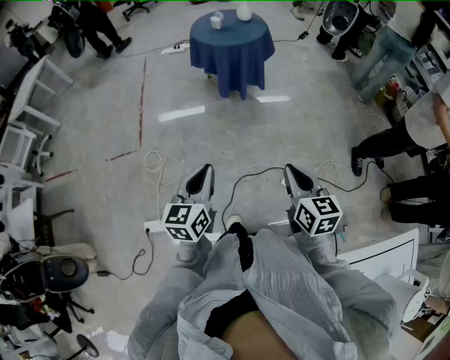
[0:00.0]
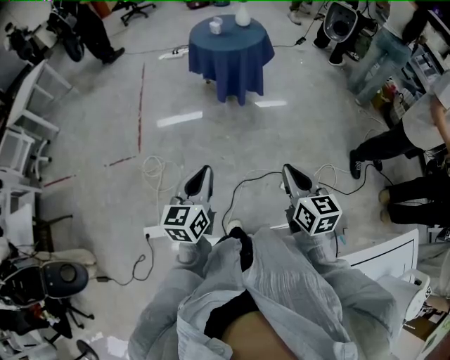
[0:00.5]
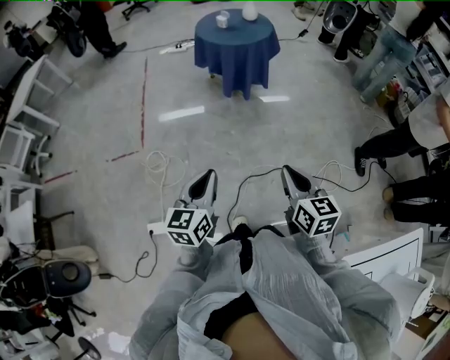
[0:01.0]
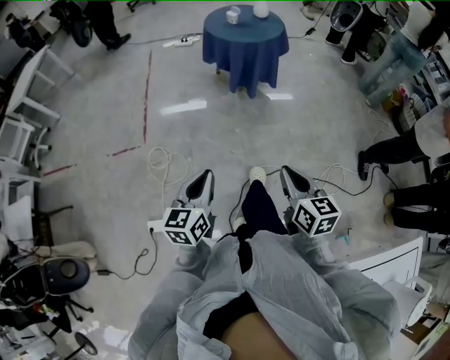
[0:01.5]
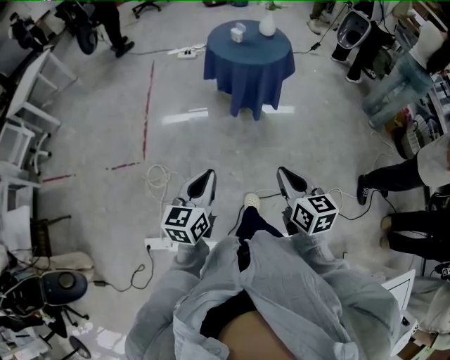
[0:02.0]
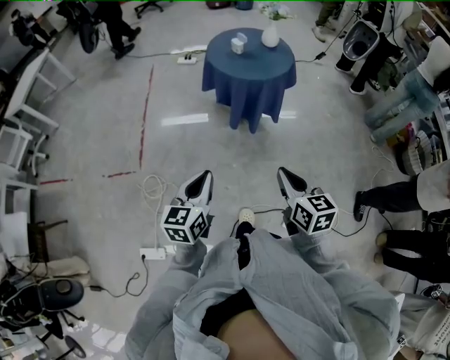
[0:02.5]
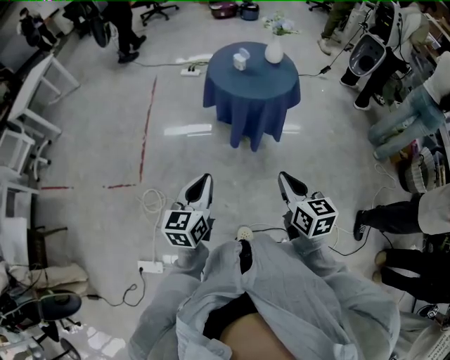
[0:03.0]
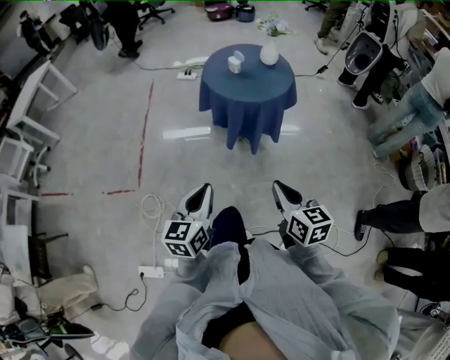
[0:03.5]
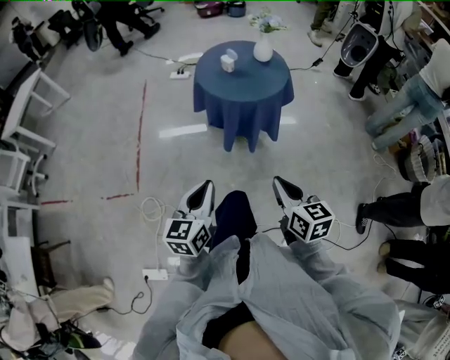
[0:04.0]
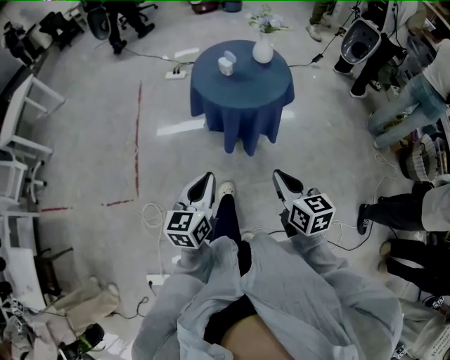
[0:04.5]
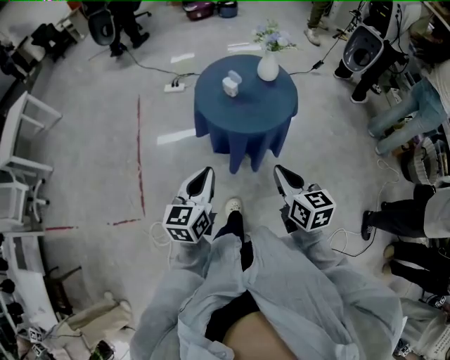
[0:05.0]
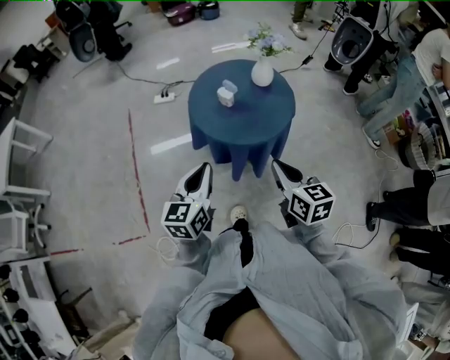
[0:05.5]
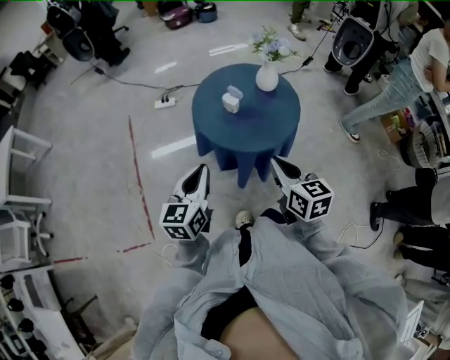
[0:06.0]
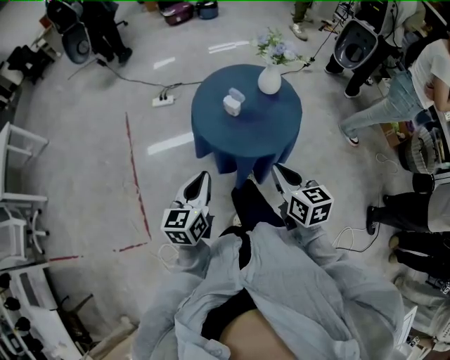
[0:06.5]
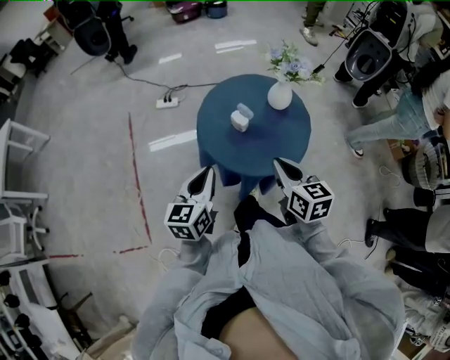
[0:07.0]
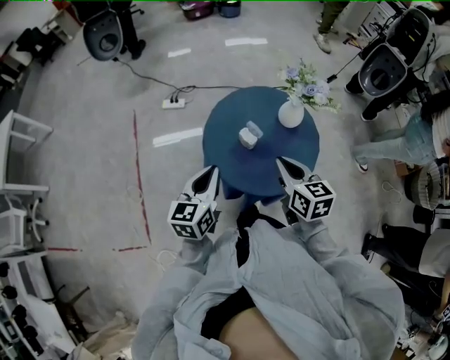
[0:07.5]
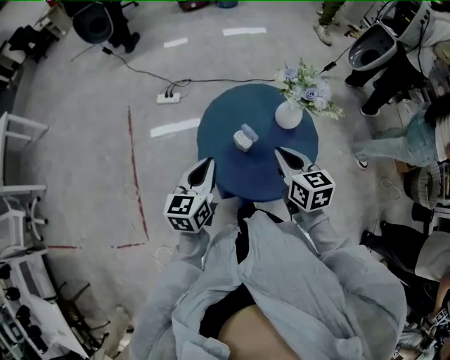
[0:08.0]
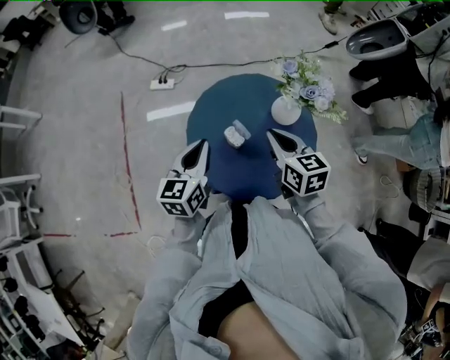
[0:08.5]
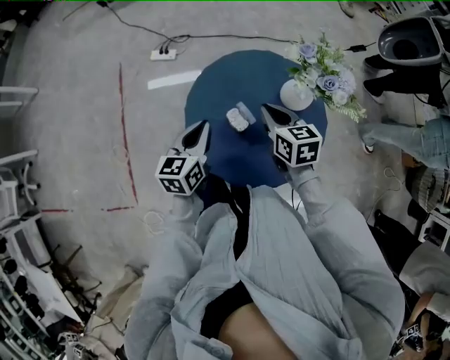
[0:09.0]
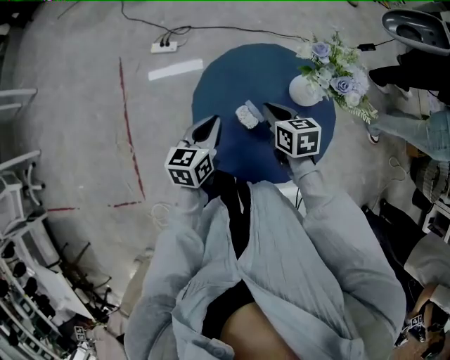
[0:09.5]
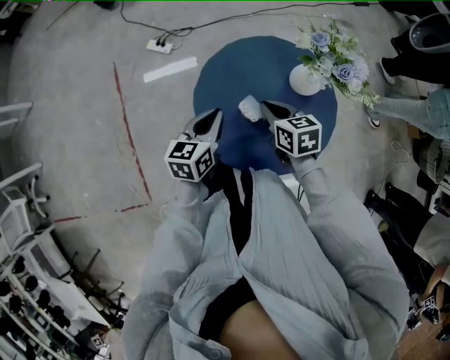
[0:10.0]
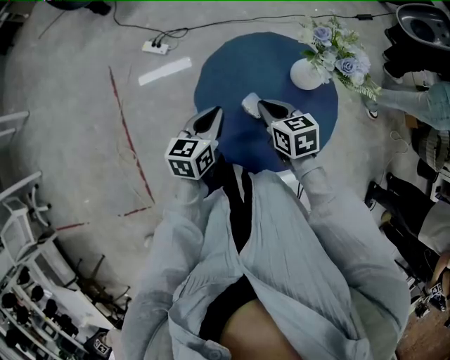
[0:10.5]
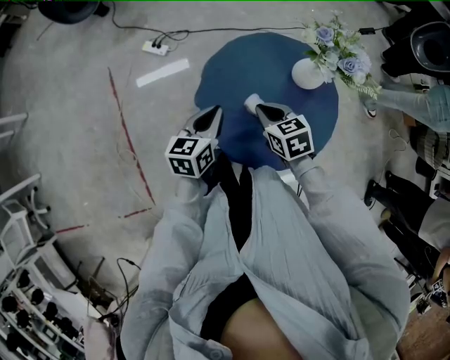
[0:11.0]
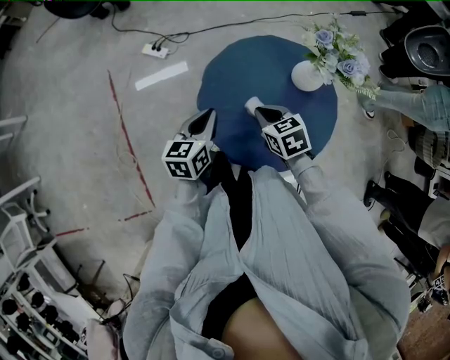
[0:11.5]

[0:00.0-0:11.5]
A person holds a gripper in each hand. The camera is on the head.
0:00.0 to 0:02.0: The left gripper moves forward, about 15 cm. Meanwhile the right gripper moves forward and to the left, approximately 20 cm.
0:02.0 to 0:04.0: Both grippers travel together forward, approximately 20 cm.
0:04.0 to 0:06.0: Both grippers move forward, roughly 30 cm.
0:06.0 to 0:07.5: Both grippers travel together forward, about 20 cm.
0:07.5 to 0:09.5: Both grippers move forward and downward, approximately 20 cm.
0:09.5 to 0:11.5: The right gripper travels to the left by about 5 cm.

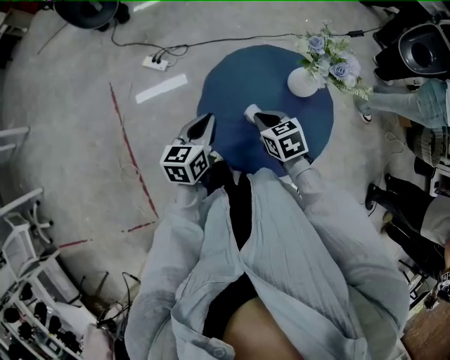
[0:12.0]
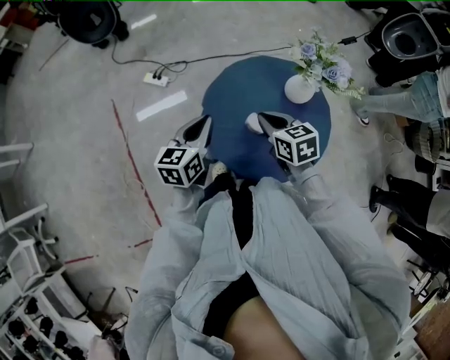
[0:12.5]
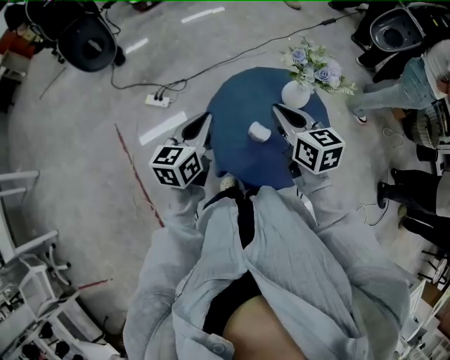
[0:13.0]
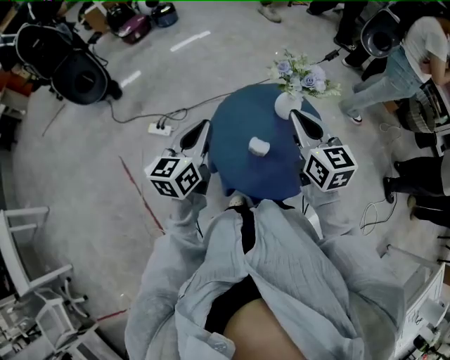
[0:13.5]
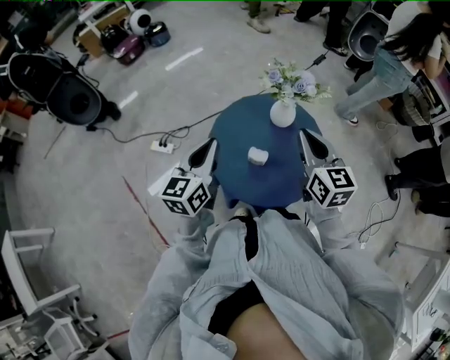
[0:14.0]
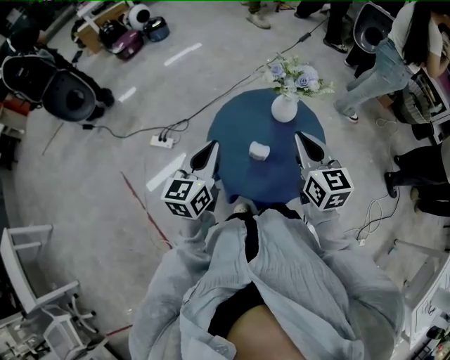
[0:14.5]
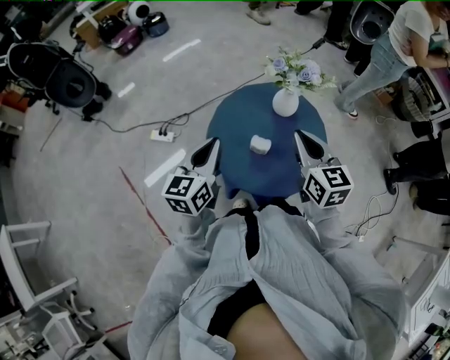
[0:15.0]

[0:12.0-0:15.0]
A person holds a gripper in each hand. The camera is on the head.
0:12.0 to 0:13.5: The right gripper shifts approximately 25 cm upward, and points its fingers roughly 40 degrees further upward. The left gripper is displaced upward by about 15 cm, and changes its angle by some 20 degrees.
0:13.5 to 0:15.0: The left gripper moves some 5 cm, while the right gripper moves backward, some 5 cm.

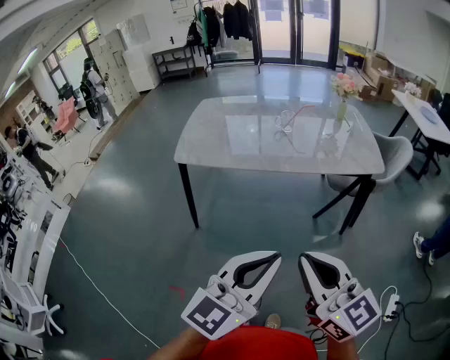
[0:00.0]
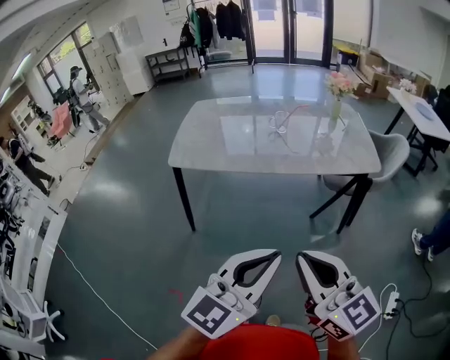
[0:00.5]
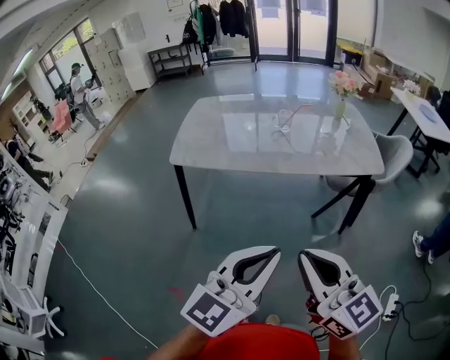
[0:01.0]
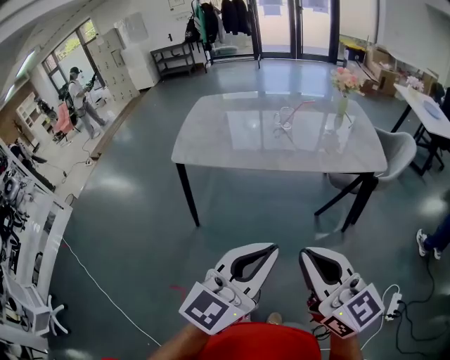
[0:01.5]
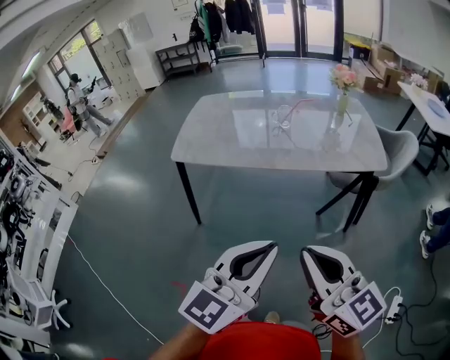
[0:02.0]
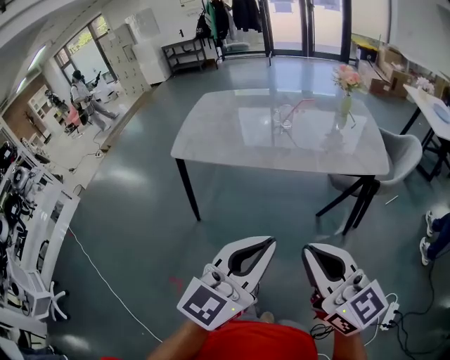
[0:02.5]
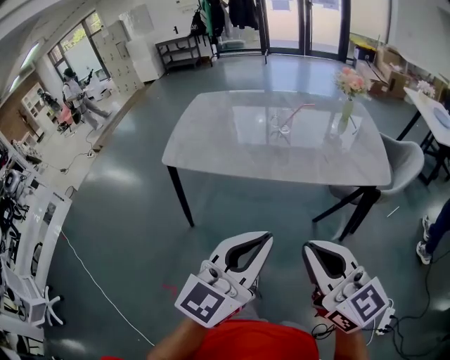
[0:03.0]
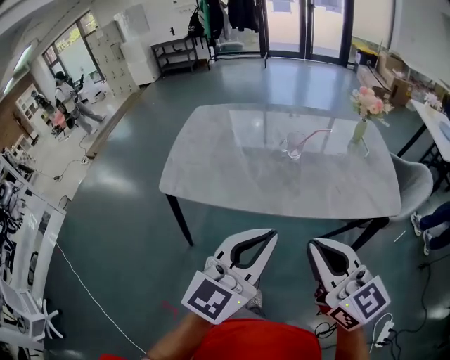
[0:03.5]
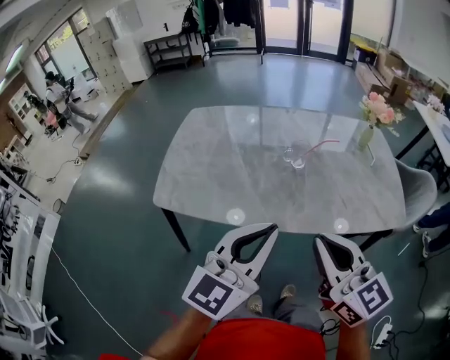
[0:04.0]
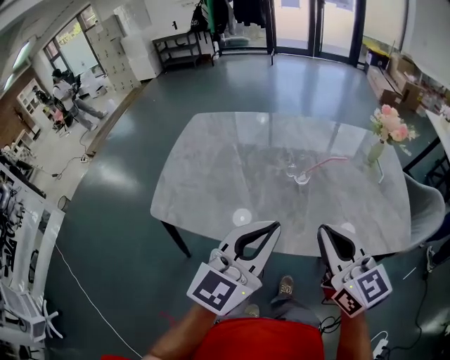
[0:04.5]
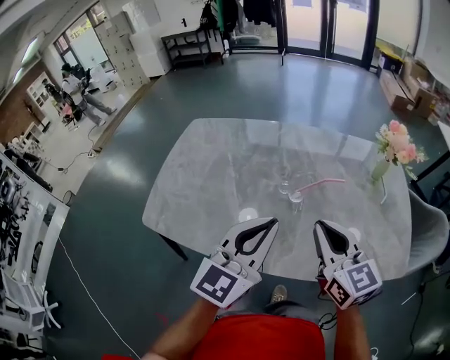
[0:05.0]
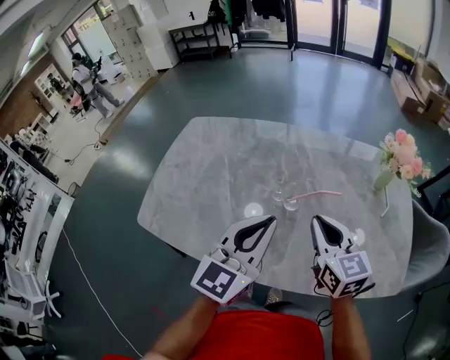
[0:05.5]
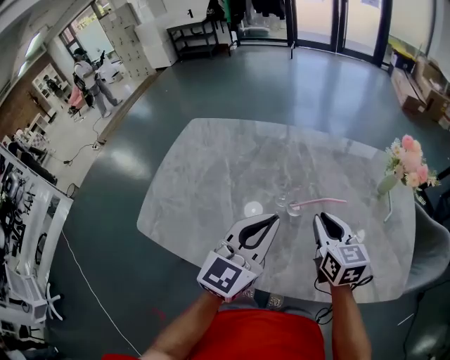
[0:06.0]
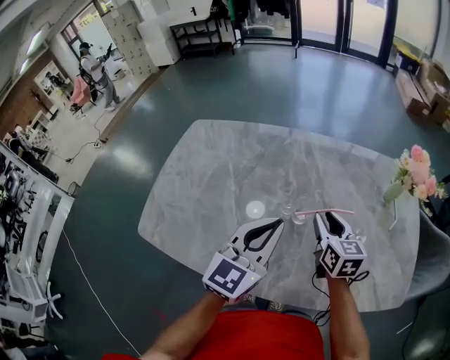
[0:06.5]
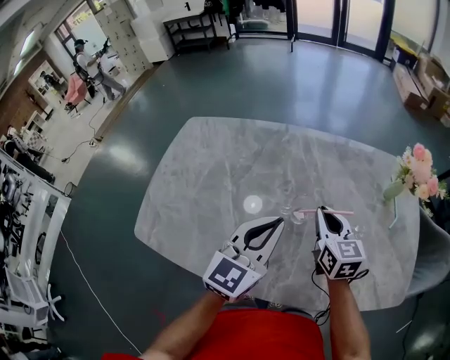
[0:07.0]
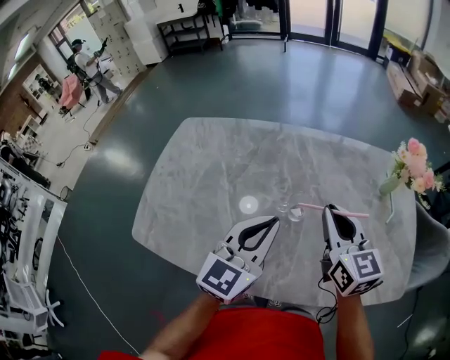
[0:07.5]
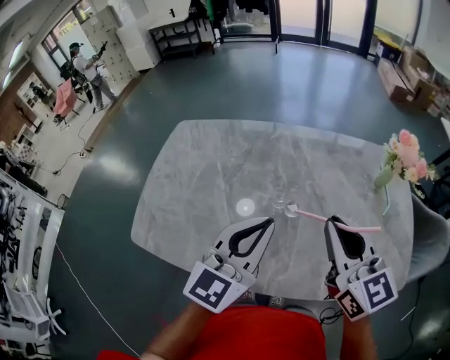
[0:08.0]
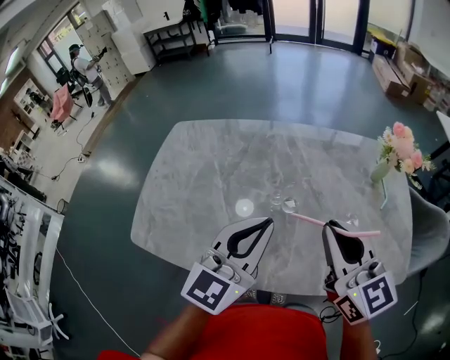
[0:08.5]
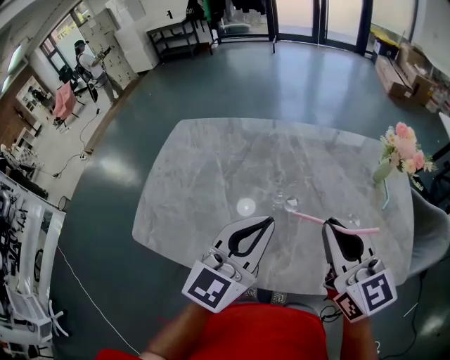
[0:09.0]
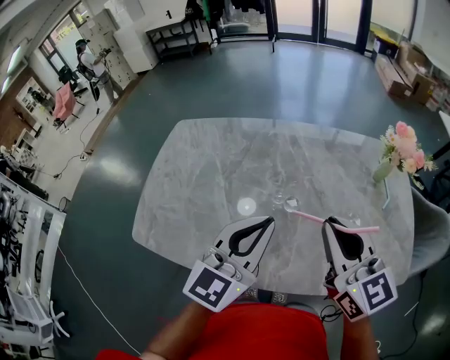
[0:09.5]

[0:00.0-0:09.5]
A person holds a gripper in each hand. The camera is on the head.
0:00.0 to 0:02.0: The right gripper shifts by approximately 5 cm, while the left gripper moves approximately 5 cm.
0:02.0 to 0:04.0: Both grippers travel together forward, about 35 cm.
0:04.0 to 0:05.5: Both grippers travel together forward, about 25 cm.
0:05.5 to 0:07.5: Both grippers move forward, about 5 cm. The right gripper reaches roughly 10 cm downward, then returns, and opens, then closes once more.
0:07.5 to 0:09.5: The left gripper shifts by some 5 cm. Meanwhile the right gripper shifts some 10 cm backward and upward.

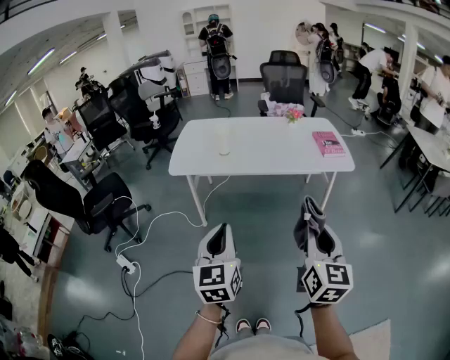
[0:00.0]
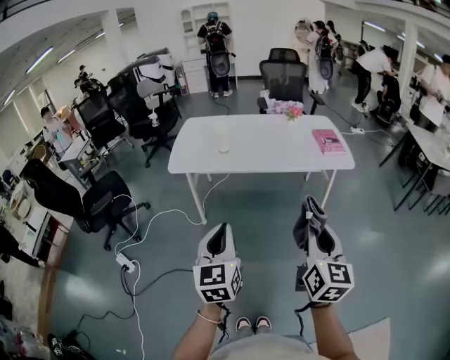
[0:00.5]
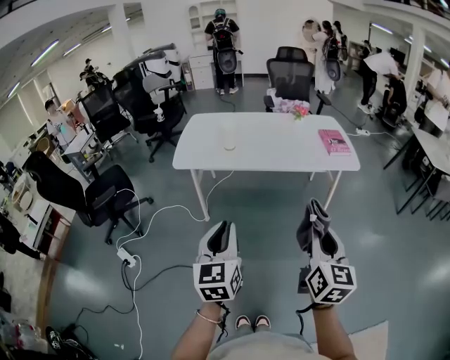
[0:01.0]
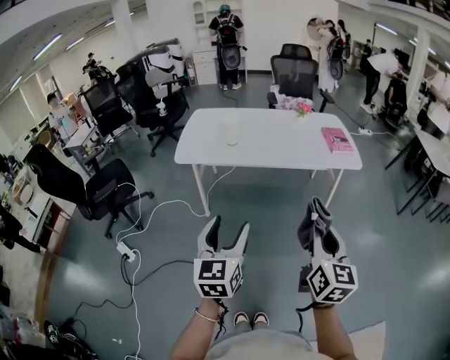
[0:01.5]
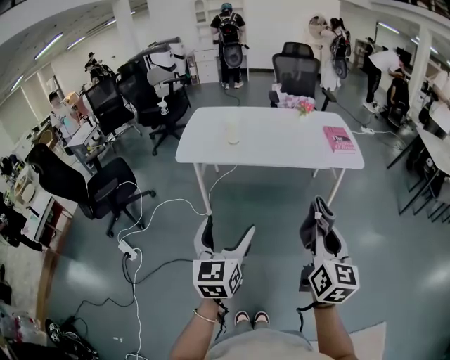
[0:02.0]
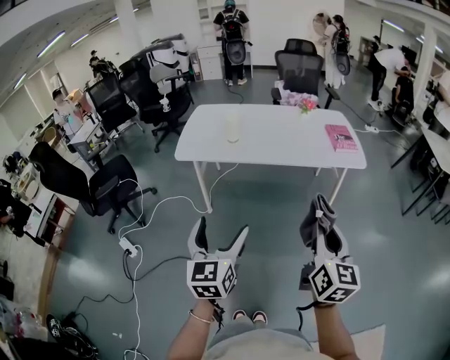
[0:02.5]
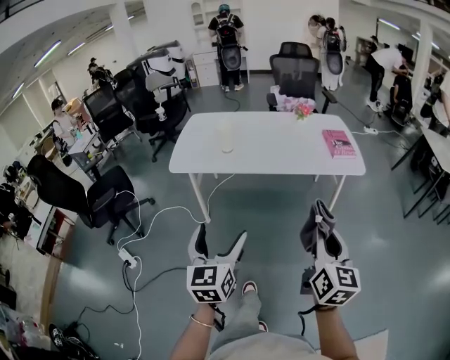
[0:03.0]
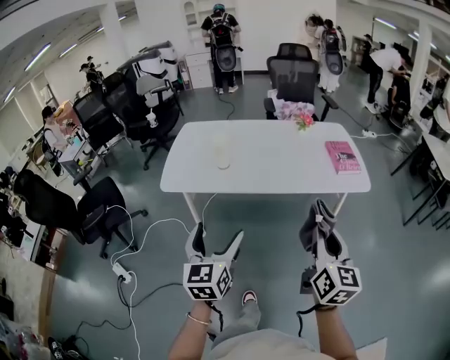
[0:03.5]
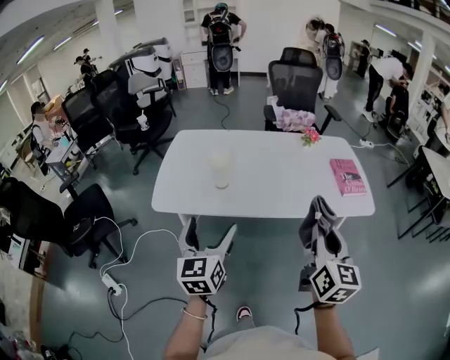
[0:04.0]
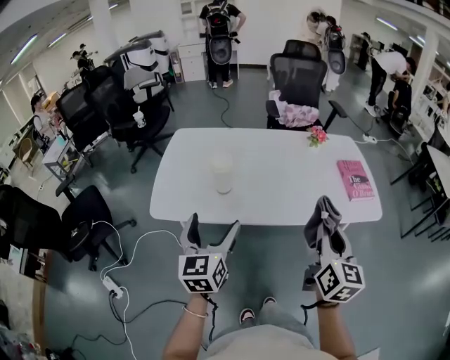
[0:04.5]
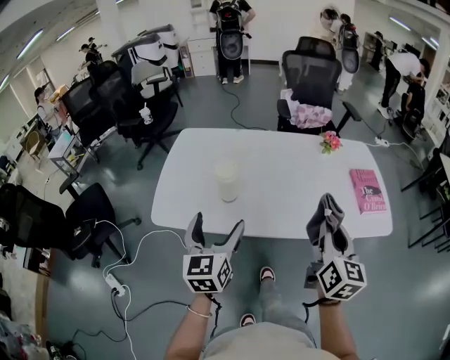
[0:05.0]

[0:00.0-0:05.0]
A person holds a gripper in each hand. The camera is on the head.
0:00.0 to 0:02.5: The left gripper opens up.
0:02.5 to 0:05.0: The two grippers travel together, forward, approximately 50 cm.
